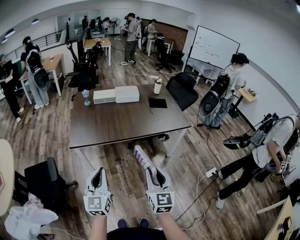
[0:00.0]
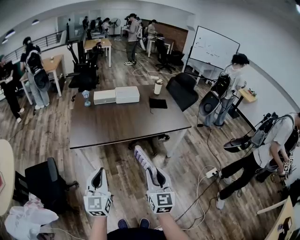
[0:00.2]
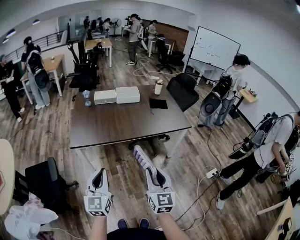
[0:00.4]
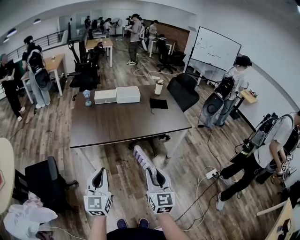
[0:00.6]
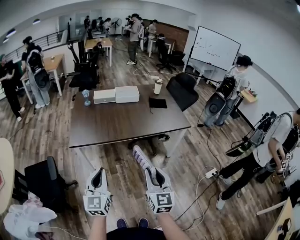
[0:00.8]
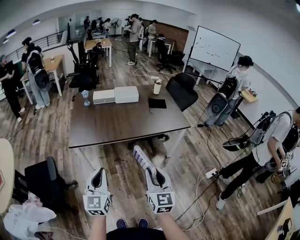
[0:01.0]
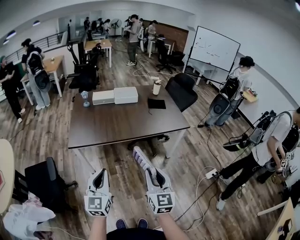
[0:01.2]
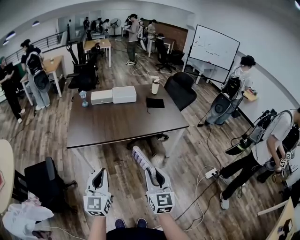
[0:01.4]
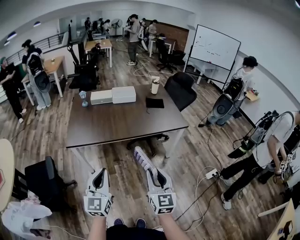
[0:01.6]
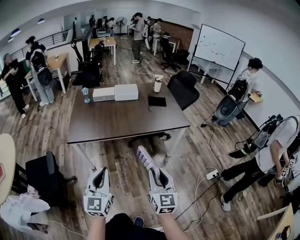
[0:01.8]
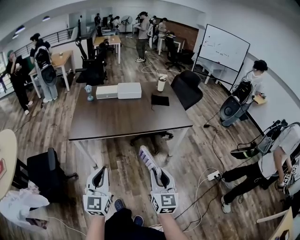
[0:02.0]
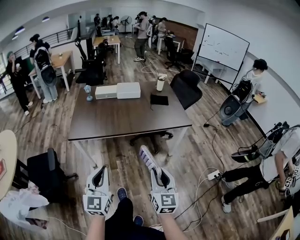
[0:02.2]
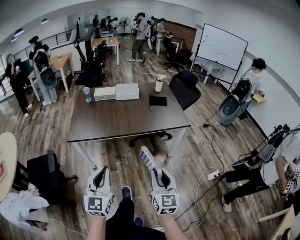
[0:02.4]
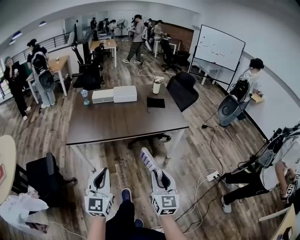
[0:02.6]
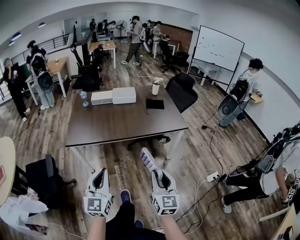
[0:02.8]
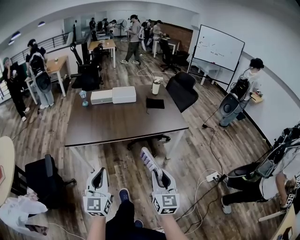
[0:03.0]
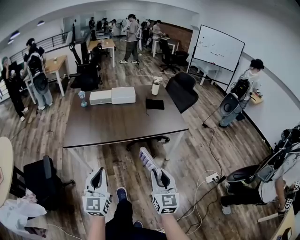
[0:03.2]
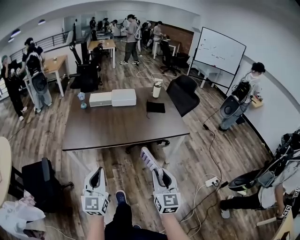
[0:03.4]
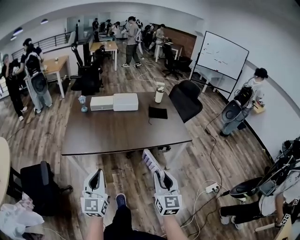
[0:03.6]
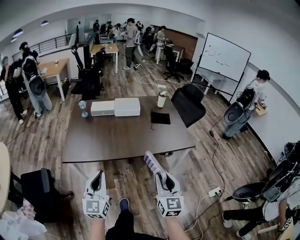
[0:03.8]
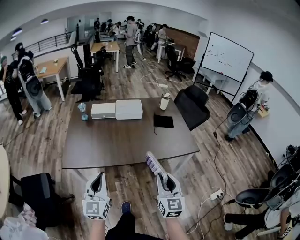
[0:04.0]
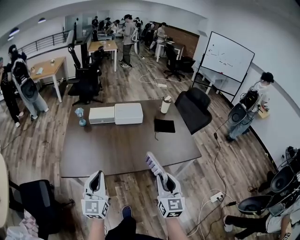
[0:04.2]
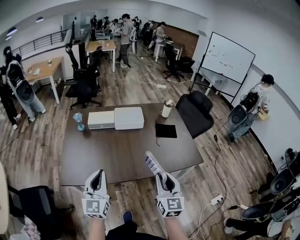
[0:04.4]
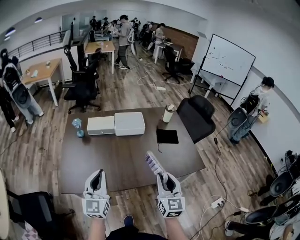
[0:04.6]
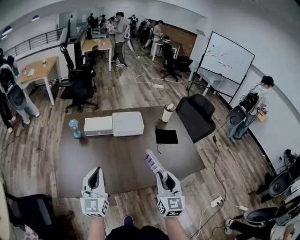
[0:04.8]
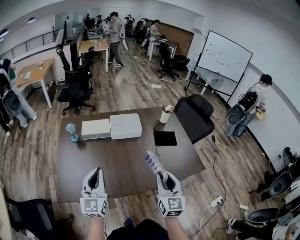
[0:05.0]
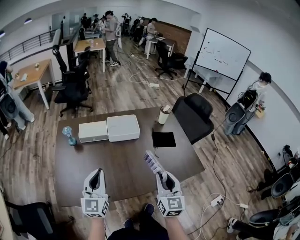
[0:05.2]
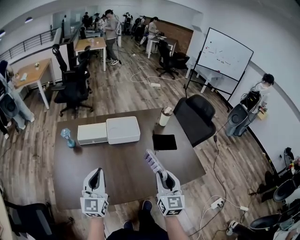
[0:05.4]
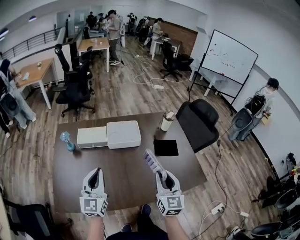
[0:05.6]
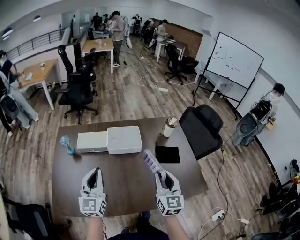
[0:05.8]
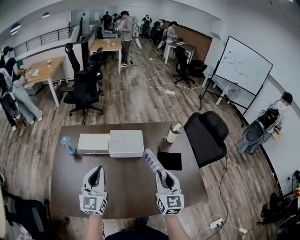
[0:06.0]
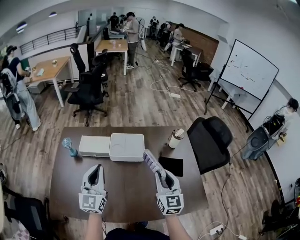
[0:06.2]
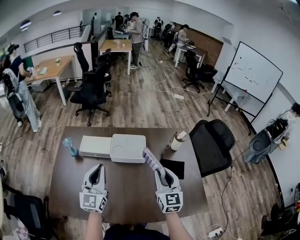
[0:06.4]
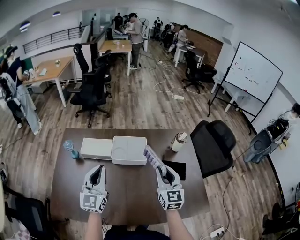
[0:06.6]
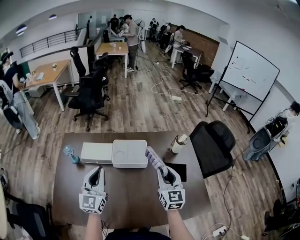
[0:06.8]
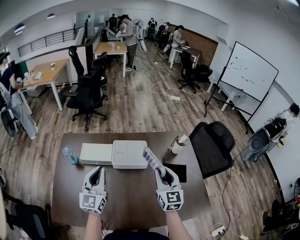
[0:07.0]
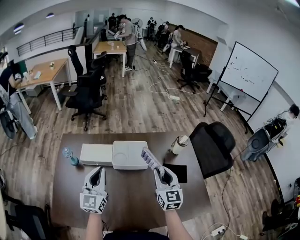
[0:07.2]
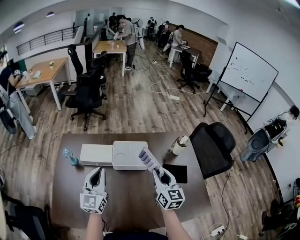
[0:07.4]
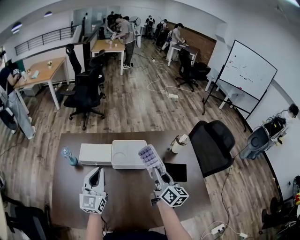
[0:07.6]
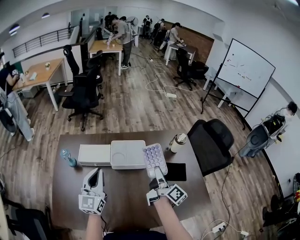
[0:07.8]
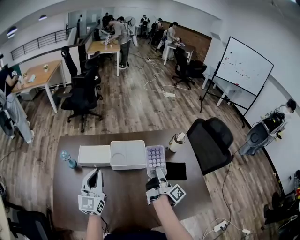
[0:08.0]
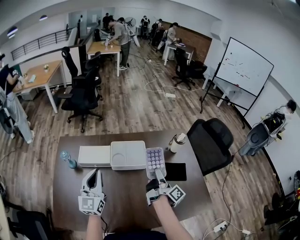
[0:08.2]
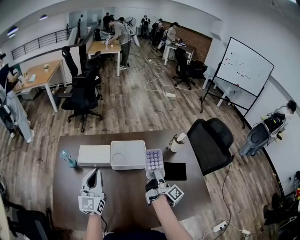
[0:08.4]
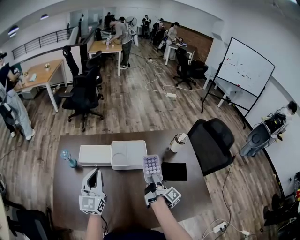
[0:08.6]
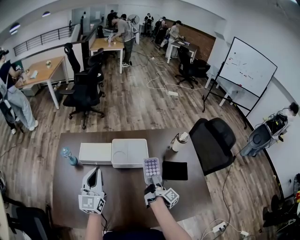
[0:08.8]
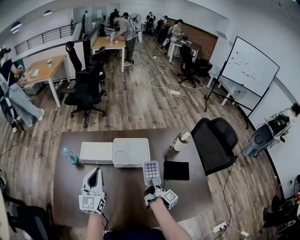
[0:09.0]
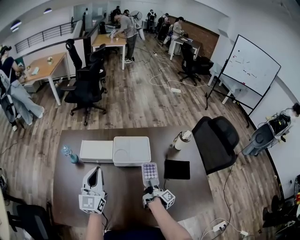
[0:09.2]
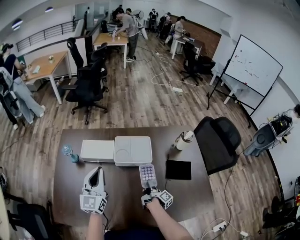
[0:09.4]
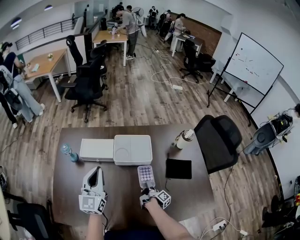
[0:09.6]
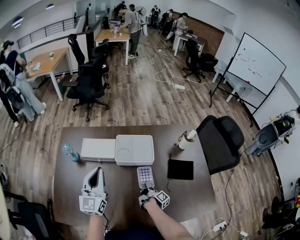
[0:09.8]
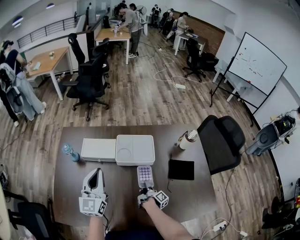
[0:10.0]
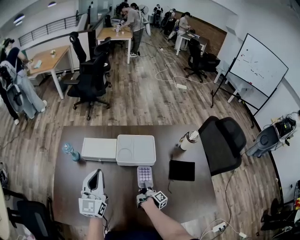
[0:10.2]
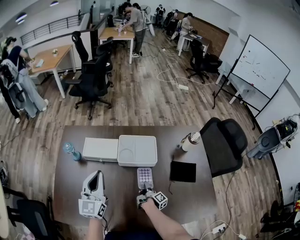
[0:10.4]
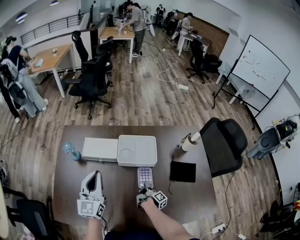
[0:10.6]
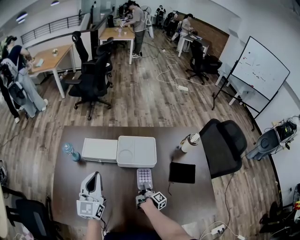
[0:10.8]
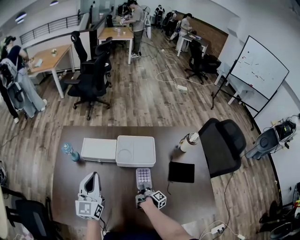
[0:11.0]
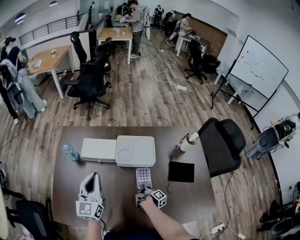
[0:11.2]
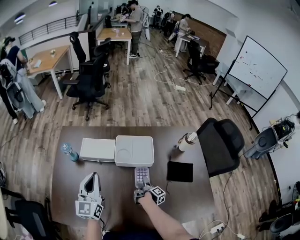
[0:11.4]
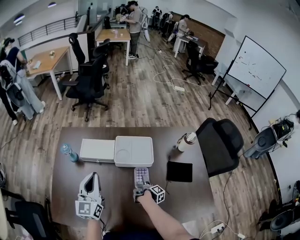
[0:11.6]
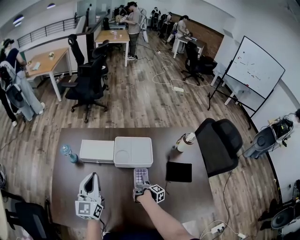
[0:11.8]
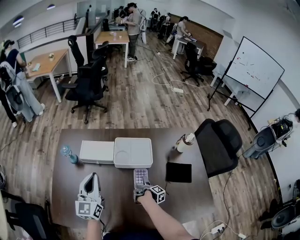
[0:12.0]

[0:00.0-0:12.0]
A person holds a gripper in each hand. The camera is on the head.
0:00.0 to 0:01.6: The two grippers go roughly 10 cm to the right.
0:01.6 to 0:03.0: The right gripper travels to the right by about 5 cm.
0:03.0 to 0:04.4: Both grippers travel together forward, about 40 cm.
0:04.4 to 0:06.0: The grippers both shift forward by approximately 35 cm.
0:06.0 to 0:07.6: The two grippers go roughly 10 cm forward. The right gripper changes its angle by about 40 degrees.
0:07.6 to 0:09.0: The right gripper shifts about 20 cm downward, and rolls clockwise, seen from behind, by roughly 60 degrees.
0:09.0 to 0:10.4: The right gripper moves downward, some 15 cm.
0:10.4 to 0:12.0: The right gripper opens up.

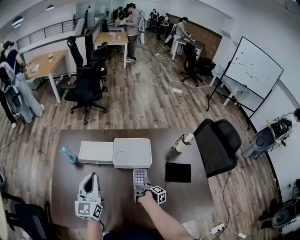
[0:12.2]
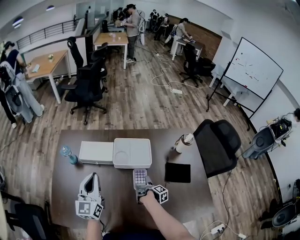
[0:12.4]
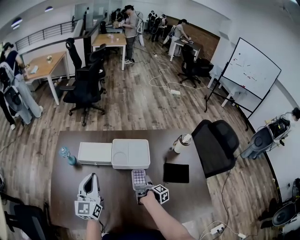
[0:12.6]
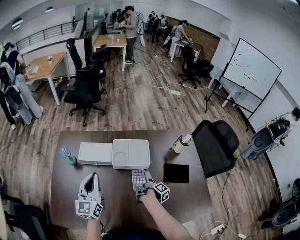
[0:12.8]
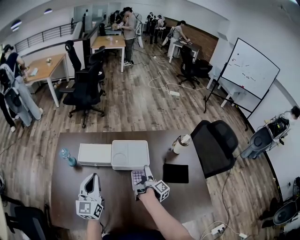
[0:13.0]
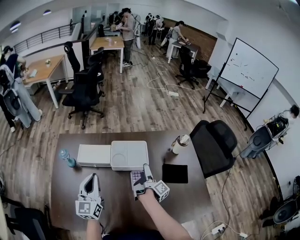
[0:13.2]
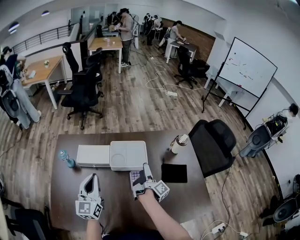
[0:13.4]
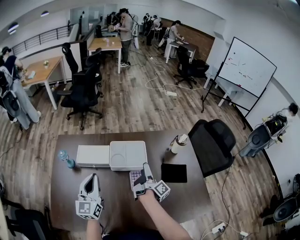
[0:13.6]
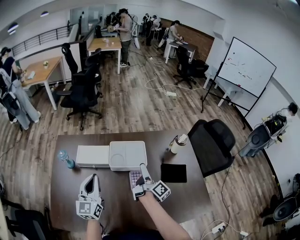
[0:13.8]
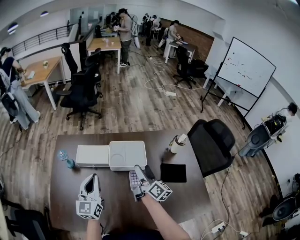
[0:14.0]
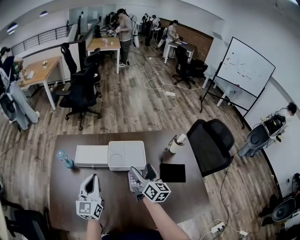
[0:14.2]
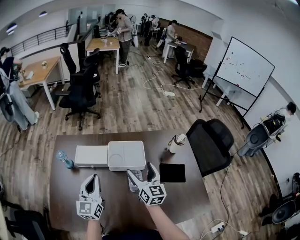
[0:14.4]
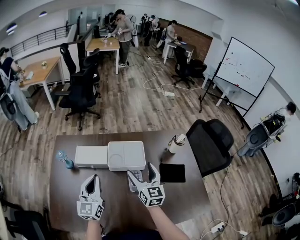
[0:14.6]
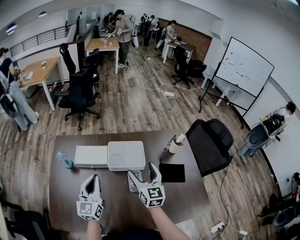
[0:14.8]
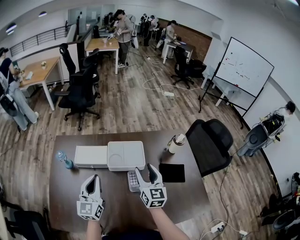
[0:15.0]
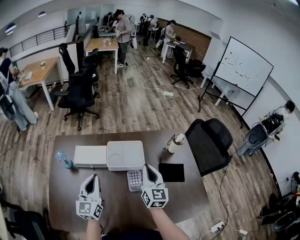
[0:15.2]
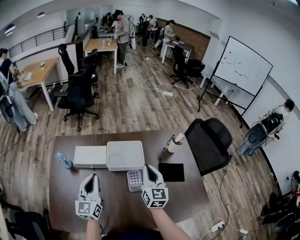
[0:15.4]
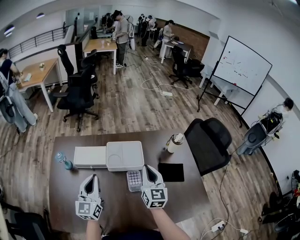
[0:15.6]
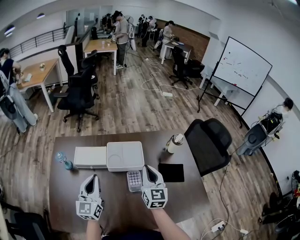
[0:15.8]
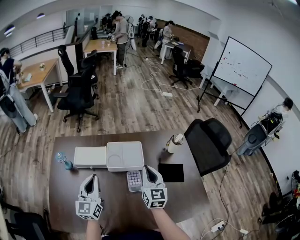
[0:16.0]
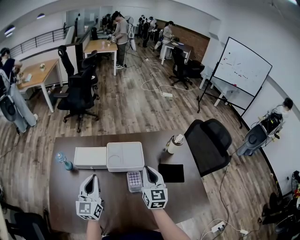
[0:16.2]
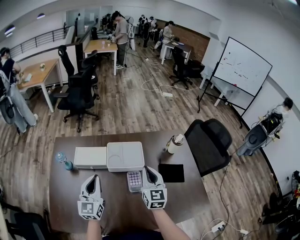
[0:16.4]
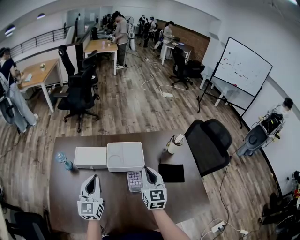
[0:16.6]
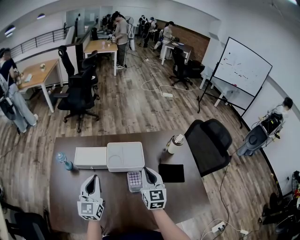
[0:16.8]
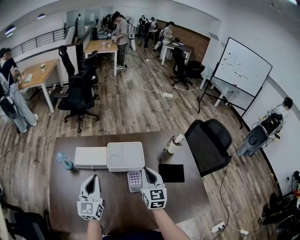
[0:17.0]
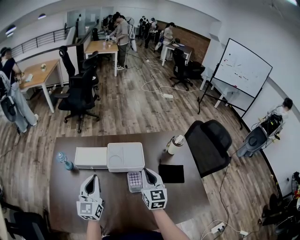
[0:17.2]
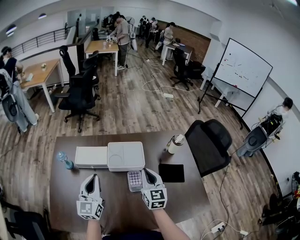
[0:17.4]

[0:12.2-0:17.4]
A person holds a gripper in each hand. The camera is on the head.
0:12.2 to 0:14.0: The right gripper moves upward, roughly 30 cm, and tilts its fingers roughly 40 degrees upward.
0:14.0 to 0:15.6: The right gripper travels upward by approximately 5 cm, rotates around the line of its fingers by approximately 50 degrees, counterclockwise from behind, and closes up.
0:15.6 to 0:17.4: The grippers stay close to where they were, moving slightly.

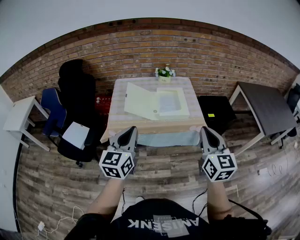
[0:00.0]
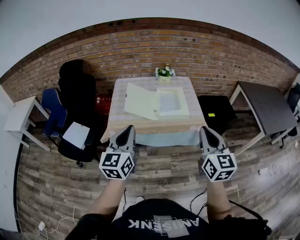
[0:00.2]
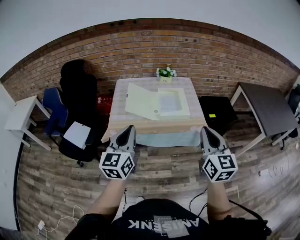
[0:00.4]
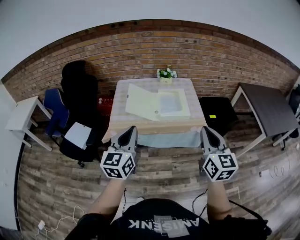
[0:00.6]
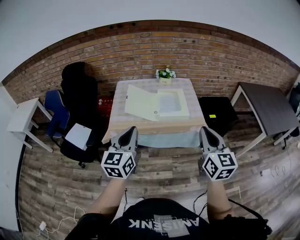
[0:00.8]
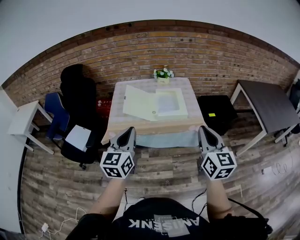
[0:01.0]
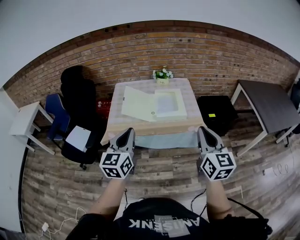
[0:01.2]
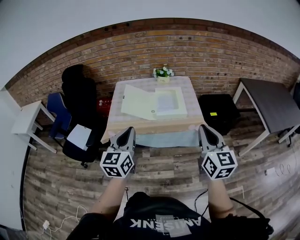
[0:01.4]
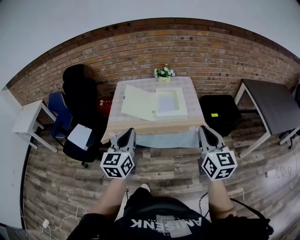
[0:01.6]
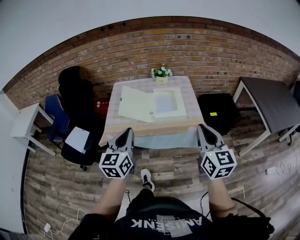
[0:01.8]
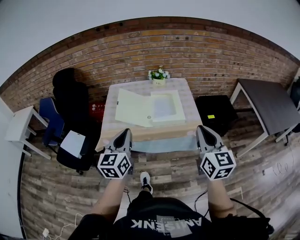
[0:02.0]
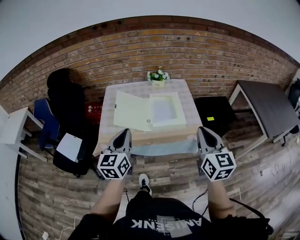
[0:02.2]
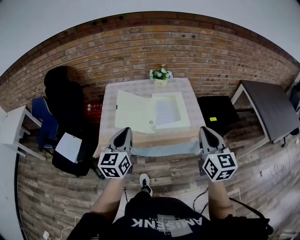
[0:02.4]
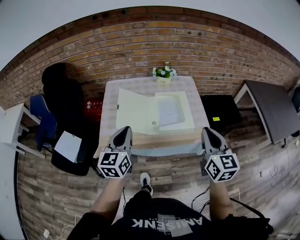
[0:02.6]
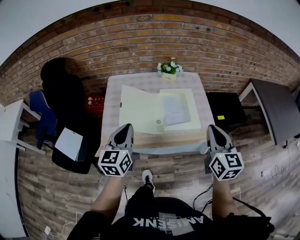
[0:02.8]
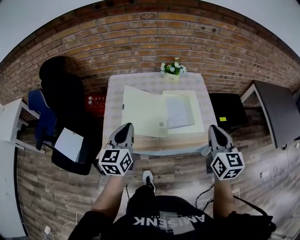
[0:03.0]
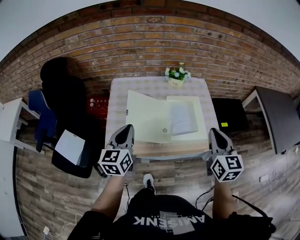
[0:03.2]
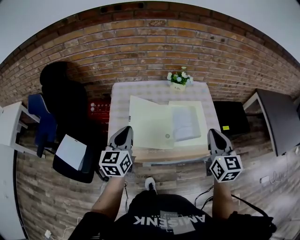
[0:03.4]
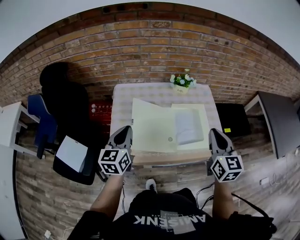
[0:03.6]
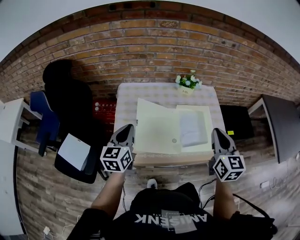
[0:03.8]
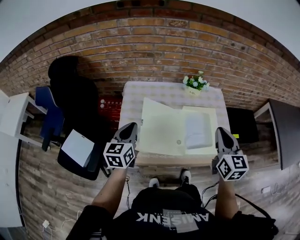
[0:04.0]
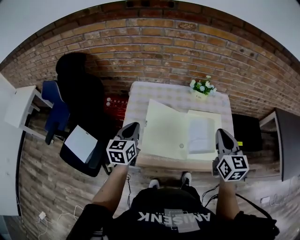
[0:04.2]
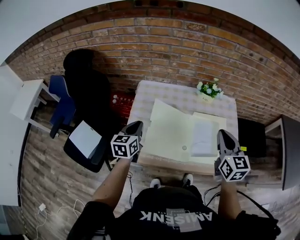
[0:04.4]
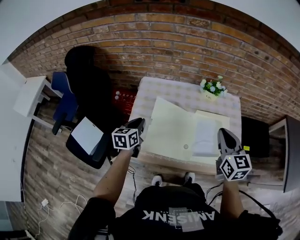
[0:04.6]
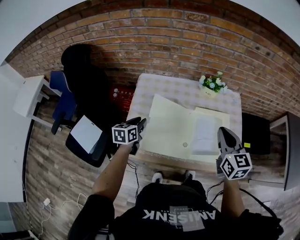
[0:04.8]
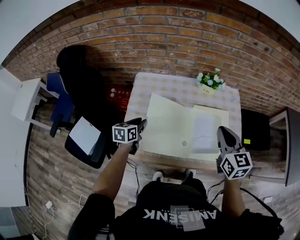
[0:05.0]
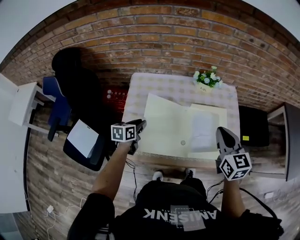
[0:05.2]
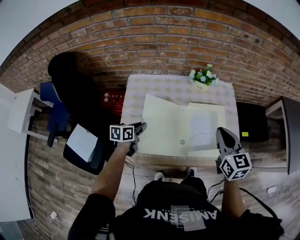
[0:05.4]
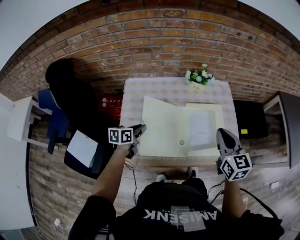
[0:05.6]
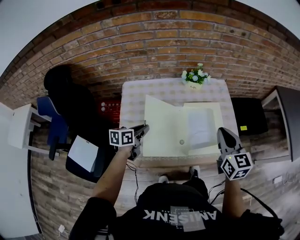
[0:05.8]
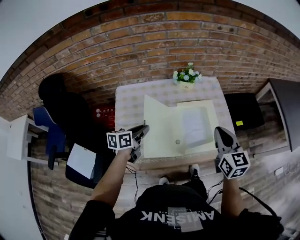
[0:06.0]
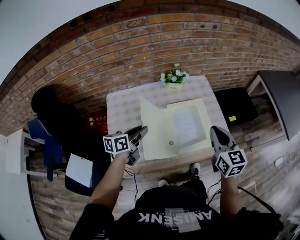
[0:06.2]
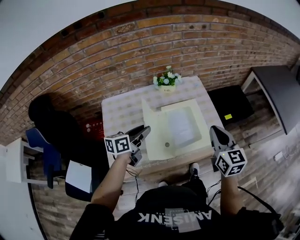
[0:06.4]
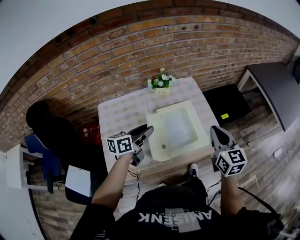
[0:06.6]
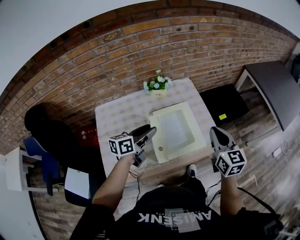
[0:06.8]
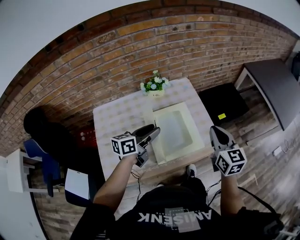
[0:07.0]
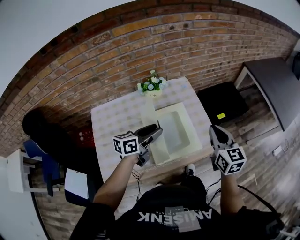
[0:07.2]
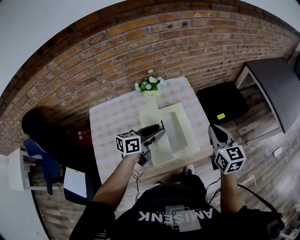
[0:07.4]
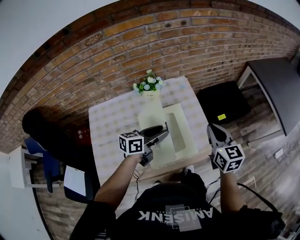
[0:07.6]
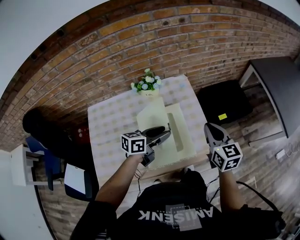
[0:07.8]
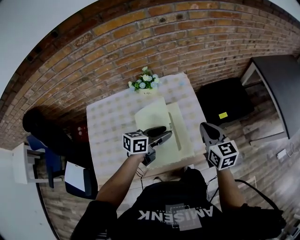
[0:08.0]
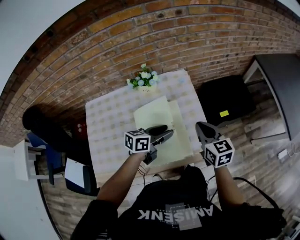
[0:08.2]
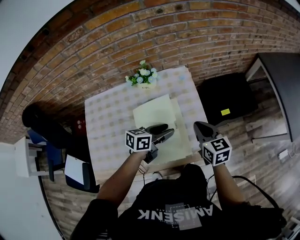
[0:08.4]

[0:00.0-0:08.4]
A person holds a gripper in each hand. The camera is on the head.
0:00.0 to 0:01.4: Both grippers travel together to the right, about 5 cm.
0:01.4 to 0:02.8: Both grippers travel together forward, approximately 25 cm.
0:02.8 to 0:04.2: The right gripper shifts roughly 20 cm forward and to the left. The left gripper moves forward, to the left and downward, about 20 cm.
0:04.2 to 0:05.6: The left gripper is displaced downward and forward by roughly 15 cm, and changes its angle by about 30 degrees, while the right gripper ends up some 5 cm from where it was.
0:05.6 to 0:07.0: The left gripper shifts approximately 30 cm to the right, upward and forward, rotates roughly 30 degrees, and opens its fingers. The right gripper moves to the right, approximately 15 cm.
0:07.0 to 0:08.4: The right gripper heads downward and forward, covering roughly 15 cm, and changes its angle by about 20 degrees; the left gripper is displaced to the right, forward and downward by some 20 cm.
